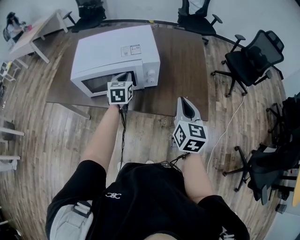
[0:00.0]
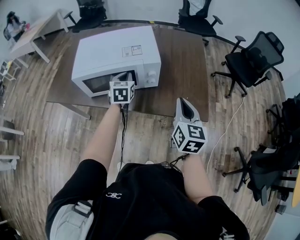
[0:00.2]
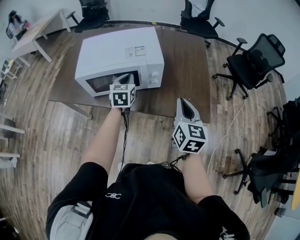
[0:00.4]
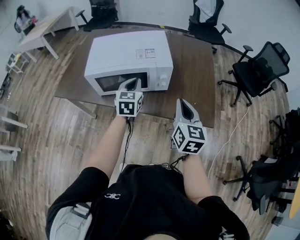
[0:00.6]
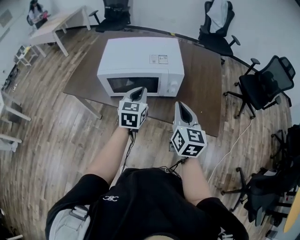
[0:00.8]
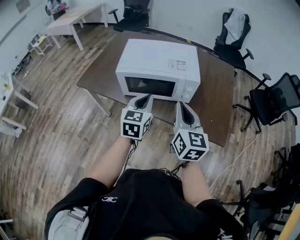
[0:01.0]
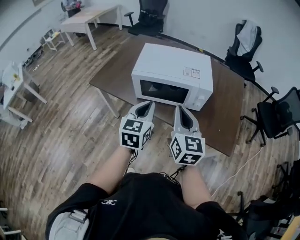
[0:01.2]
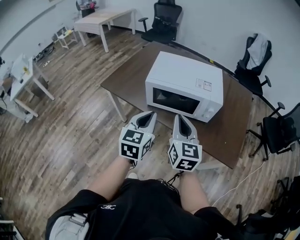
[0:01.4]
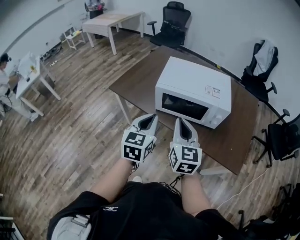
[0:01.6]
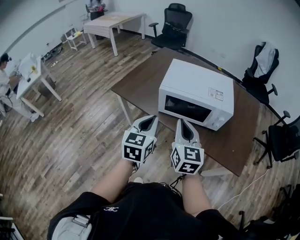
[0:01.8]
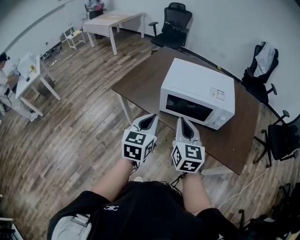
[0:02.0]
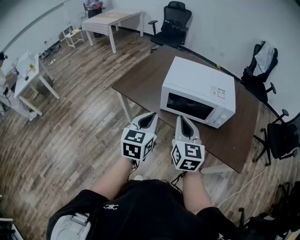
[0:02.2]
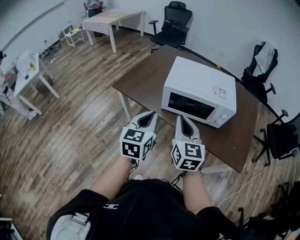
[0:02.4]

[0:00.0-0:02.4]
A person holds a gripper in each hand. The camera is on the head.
0:00.0 to 0:01.2: The left gripper moves backward, to the left and upward, some 25 cm, while the right gripper travels to the left by roughly 20 cm, and turns by some 20 degrees.
0:01.2 to 0:02.4: Both grippers move to the left, approximately 15 cm.

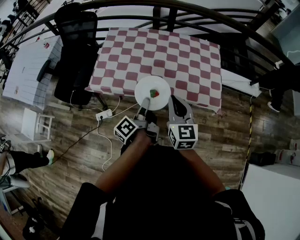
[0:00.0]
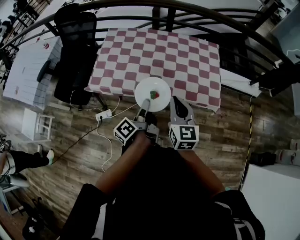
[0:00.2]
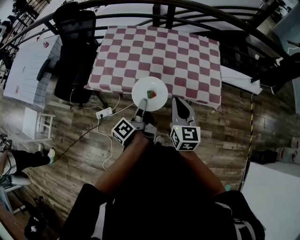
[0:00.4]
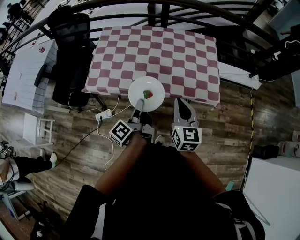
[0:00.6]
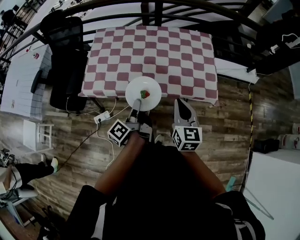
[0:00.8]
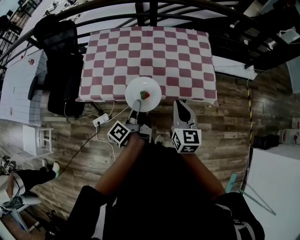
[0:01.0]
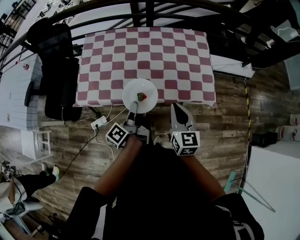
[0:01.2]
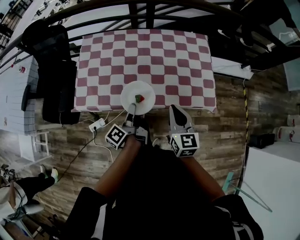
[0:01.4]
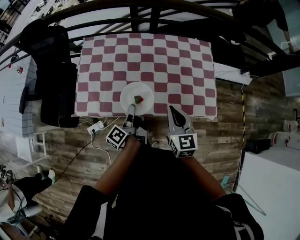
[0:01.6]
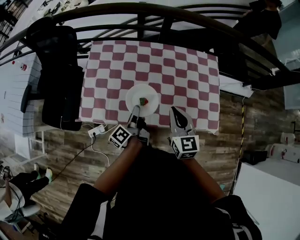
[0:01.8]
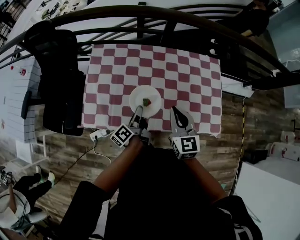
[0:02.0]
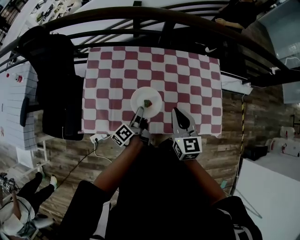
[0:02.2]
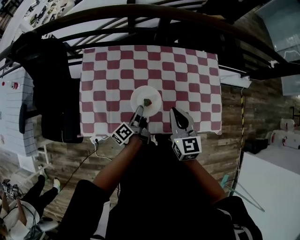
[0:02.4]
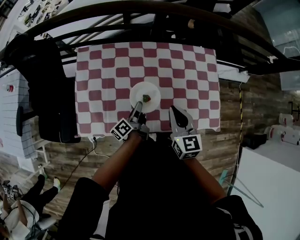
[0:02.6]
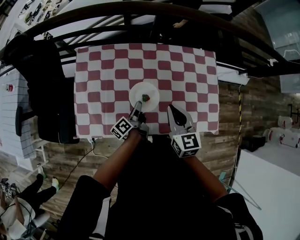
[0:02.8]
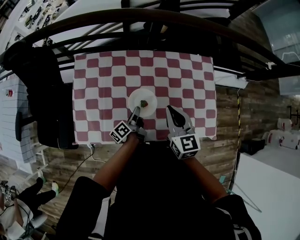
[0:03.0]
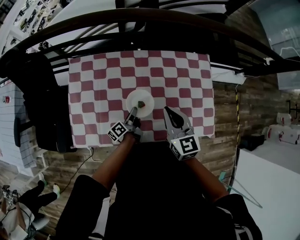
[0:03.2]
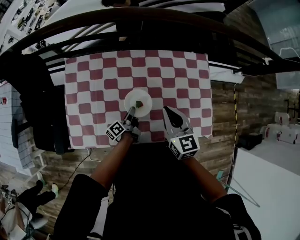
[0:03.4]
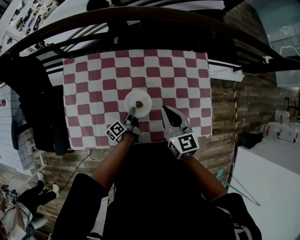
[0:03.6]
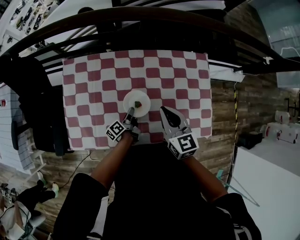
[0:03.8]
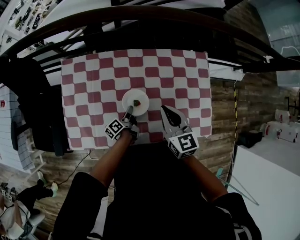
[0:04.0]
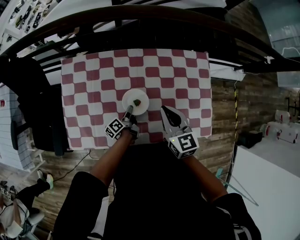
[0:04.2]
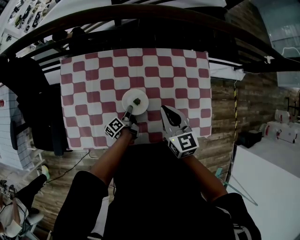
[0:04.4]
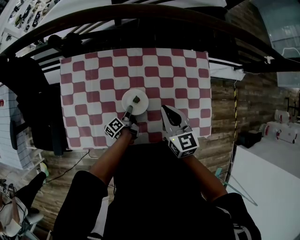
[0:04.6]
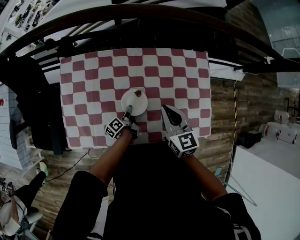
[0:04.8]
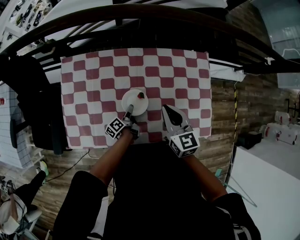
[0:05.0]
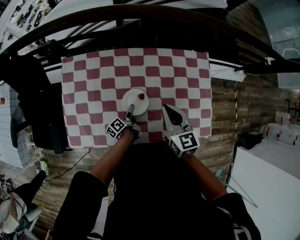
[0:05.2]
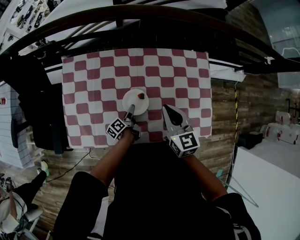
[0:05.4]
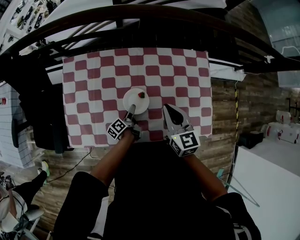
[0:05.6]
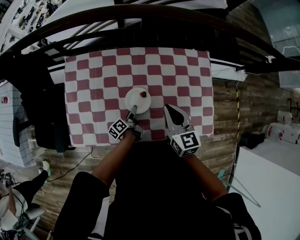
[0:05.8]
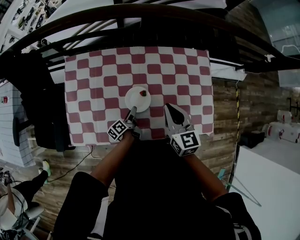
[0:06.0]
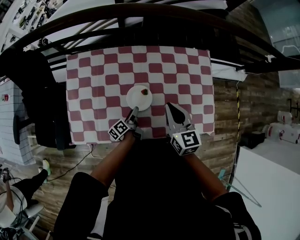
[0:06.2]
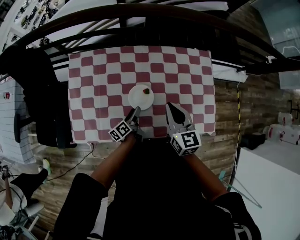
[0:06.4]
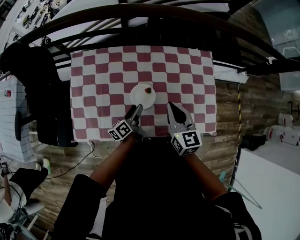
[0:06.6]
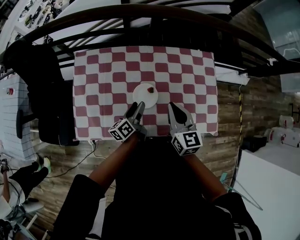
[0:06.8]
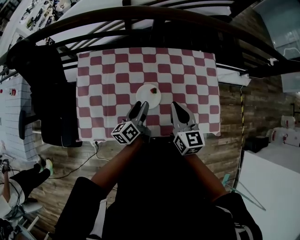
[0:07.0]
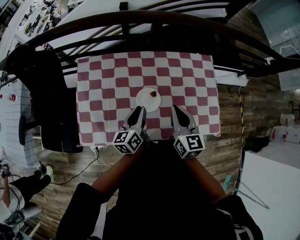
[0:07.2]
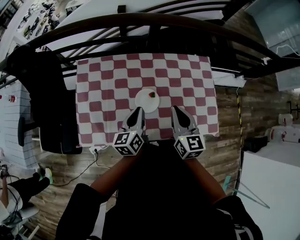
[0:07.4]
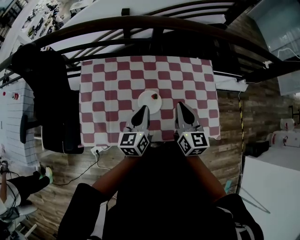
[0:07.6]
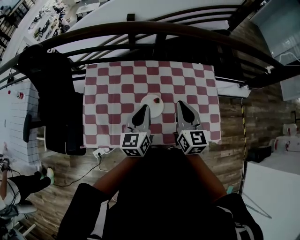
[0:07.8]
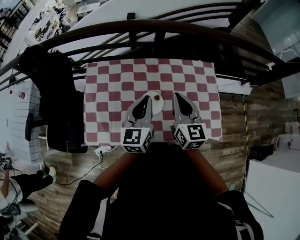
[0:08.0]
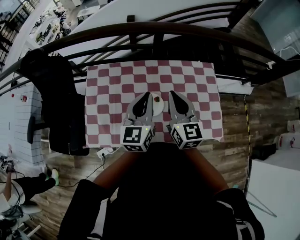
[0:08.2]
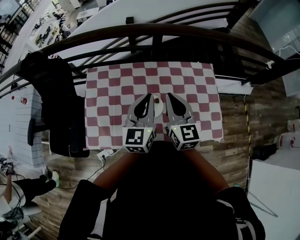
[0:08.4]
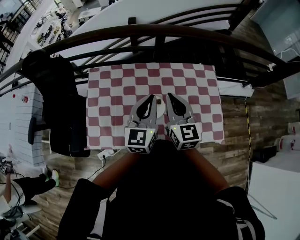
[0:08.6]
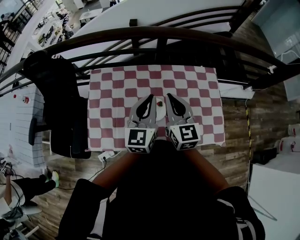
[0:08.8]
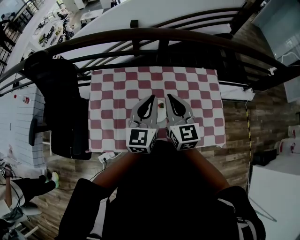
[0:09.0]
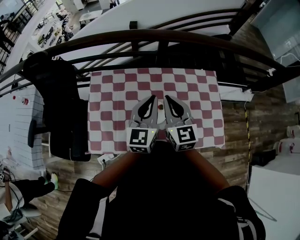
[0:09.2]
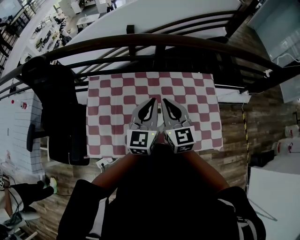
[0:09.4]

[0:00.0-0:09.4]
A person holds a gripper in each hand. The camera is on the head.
0:00.0 to 0:01.6: The grippers both shift forward and downward by approximately 15 cm.
0:01.6 to 0:03.2: The left gripper moves forward and downward, roughly 25 cm, while the right gripper moves forward, about 20 cm.
0:03.2 to 0:04.8: The right gripper changes place by about 5 cm; the left gripper goes some 5 cm downward.
0:04.8 to 0:06.2: The left gripper opens.
0:06.2 to 0:07.8: The right gripper is displaced upward by roughly 5 cm. The left gripper travels upward by about 30 cm, rotates around the line of its fingers by roughly 60 degrees, clockwise from behind, and closes.
0:07.8 to 0:09.4: The right gripper shifts approximately 5 cm to the left, while the left gripper shifts roughly 10 cm upward.

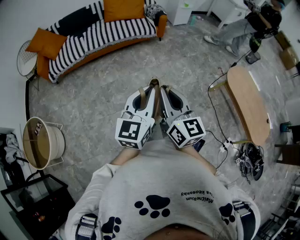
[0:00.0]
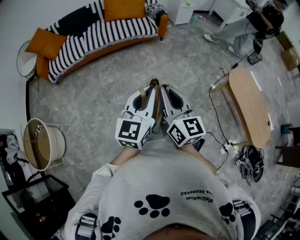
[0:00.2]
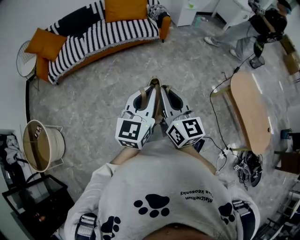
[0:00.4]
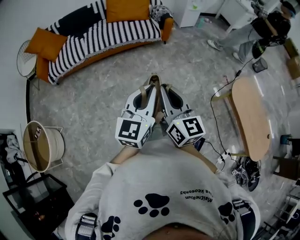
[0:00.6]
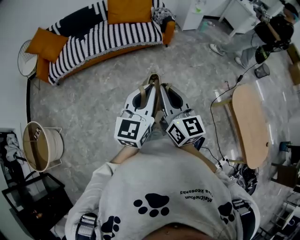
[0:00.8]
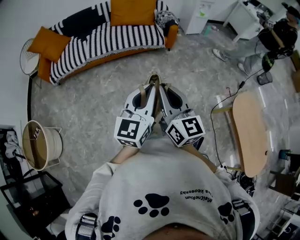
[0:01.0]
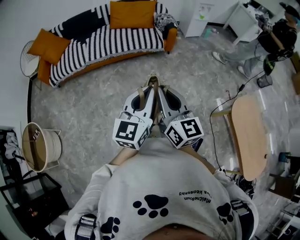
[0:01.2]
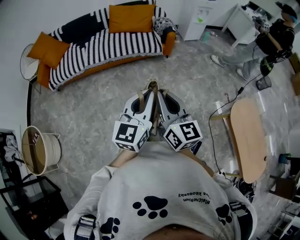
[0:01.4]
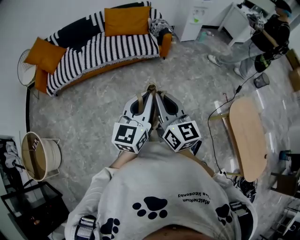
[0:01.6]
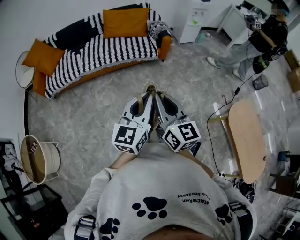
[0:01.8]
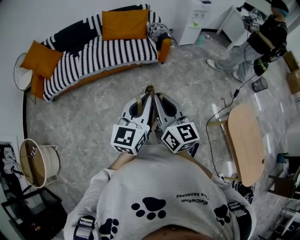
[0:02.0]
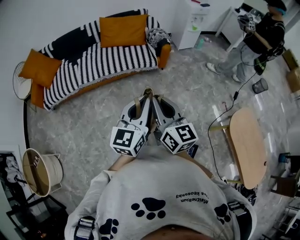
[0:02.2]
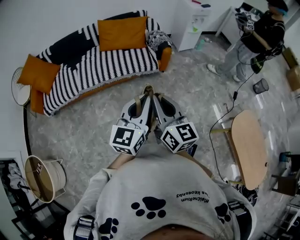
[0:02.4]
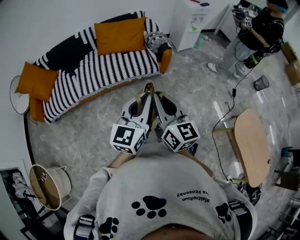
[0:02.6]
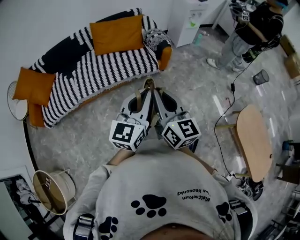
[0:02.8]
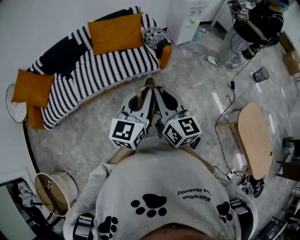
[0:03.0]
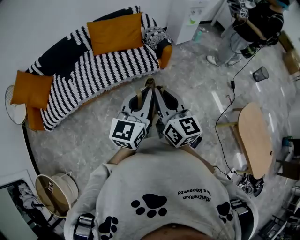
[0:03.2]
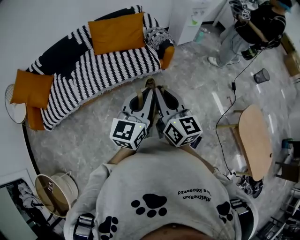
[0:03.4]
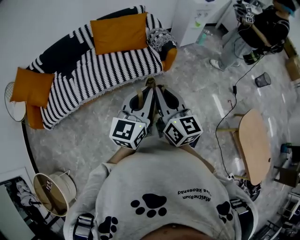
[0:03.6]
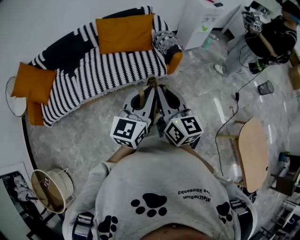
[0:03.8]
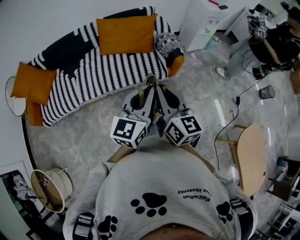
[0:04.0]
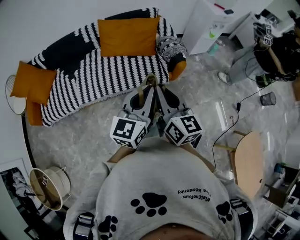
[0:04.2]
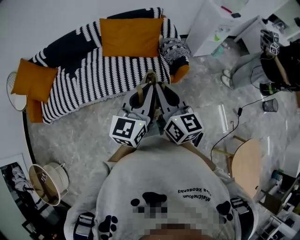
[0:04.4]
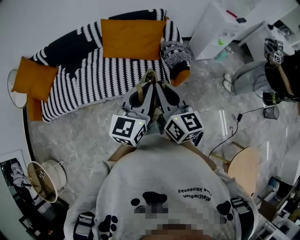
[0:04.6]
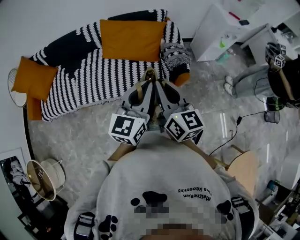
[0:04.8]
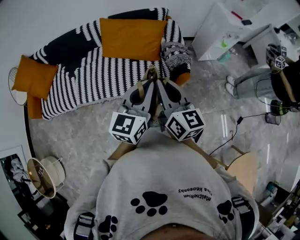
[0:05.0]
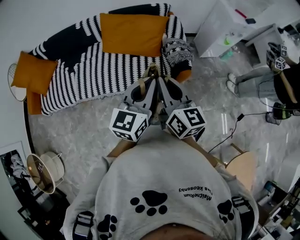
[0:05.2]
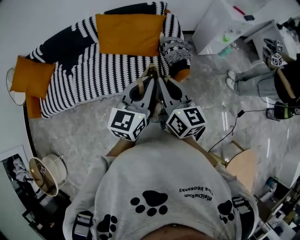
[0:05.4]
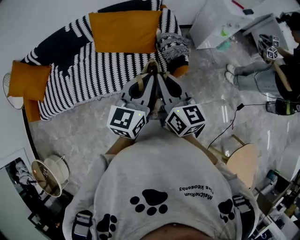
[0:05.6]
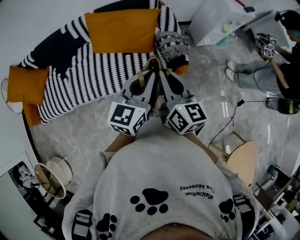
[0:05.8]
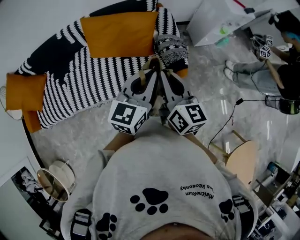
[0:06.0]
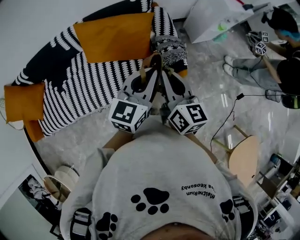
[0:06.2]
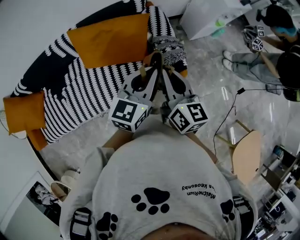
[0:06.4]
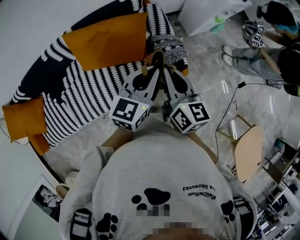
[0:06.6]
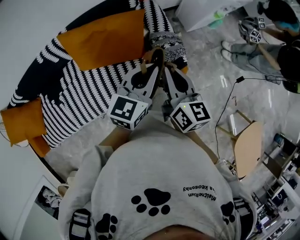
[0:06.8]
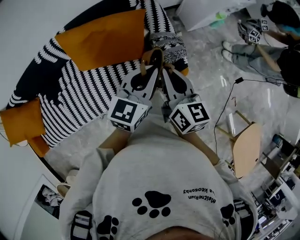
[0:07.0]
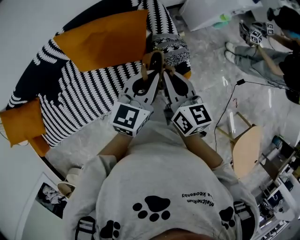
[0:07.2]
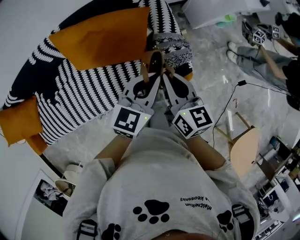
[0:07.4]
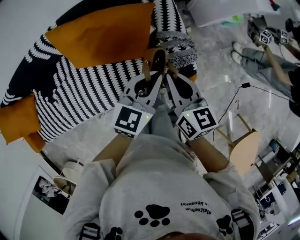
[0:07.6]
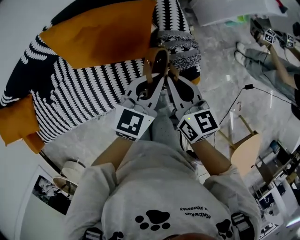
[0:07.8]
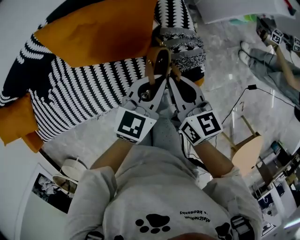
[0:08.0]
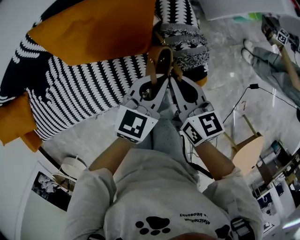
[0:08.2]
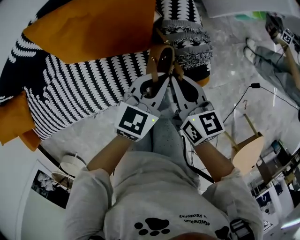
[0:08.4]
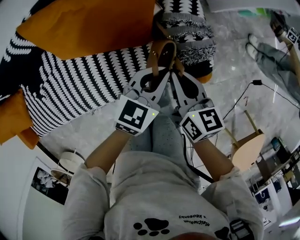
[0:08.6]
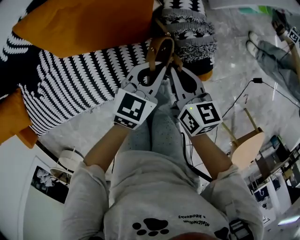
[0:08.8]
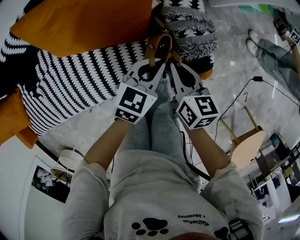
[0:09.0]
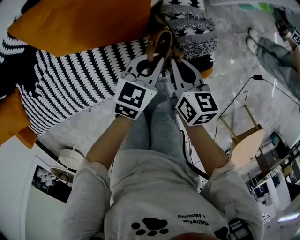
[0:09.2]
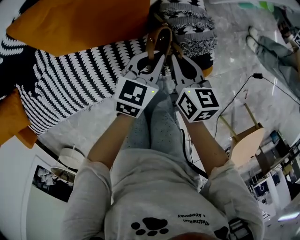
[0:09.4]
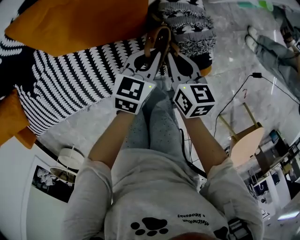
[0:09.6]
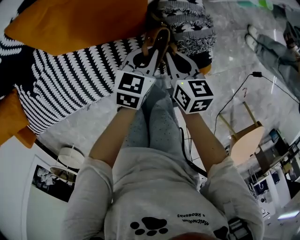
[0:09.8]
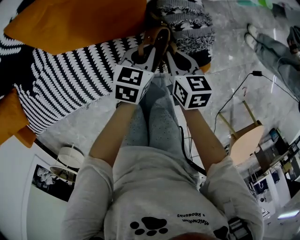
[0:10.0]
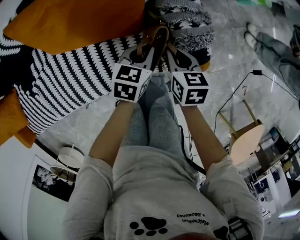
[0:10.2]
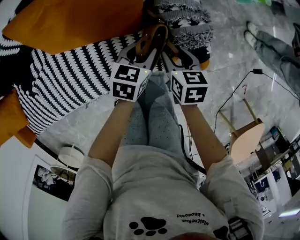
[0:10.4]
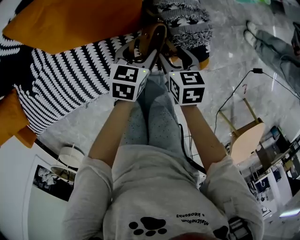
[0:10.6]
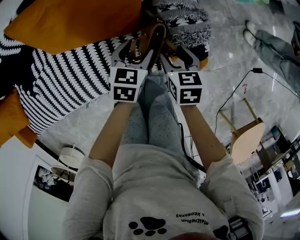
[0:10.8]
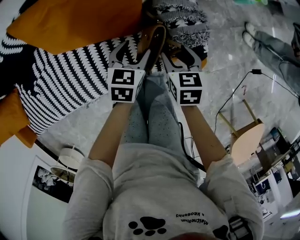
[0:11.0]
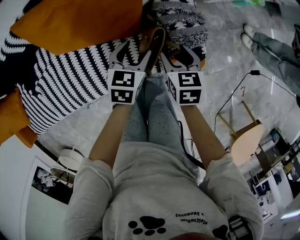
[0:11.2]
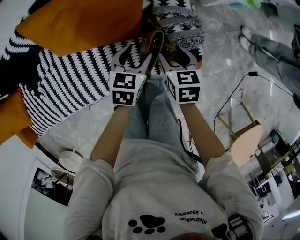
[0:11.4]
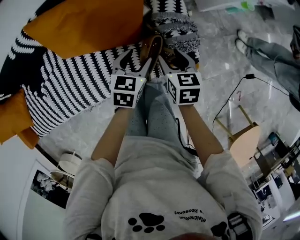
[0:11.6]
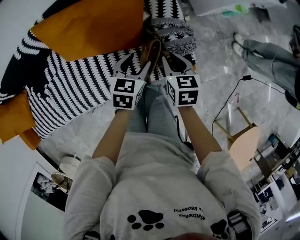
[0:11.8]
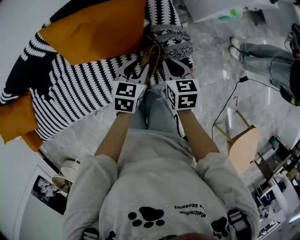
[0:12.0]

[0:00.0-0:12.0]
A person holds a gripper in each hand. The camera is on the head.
0:00.0 to 0:01.6: The grippers both shift forward by some 30 cm.
0:01.6 to 0:03.0: The two grippers go approximately 35 cm forward.
0:03.0 to 0:04.4: Both grippers travel together forward, about 30 cm.
0:04.4 to 0:06.0: The grippers both shift forward by some 25 cm.
0:06.0 to 0:07.6: Both grippers move forward and downward, about 30 cm.
0:07.6 to 0:09.0: The grippers both shift downward by about 25 cm.
0:09.0 to 0:10.4: Both grippers move downward, some 5 cm. The left gripper opens its fingers, while the right gripper opens its fingers.
0:10.4 to 0:12.0: Both grippers travel together upward, approximately 20 cm. The left gripper opens, then closes once more, while the right gripper closes up.
